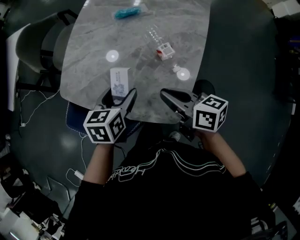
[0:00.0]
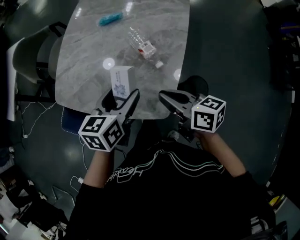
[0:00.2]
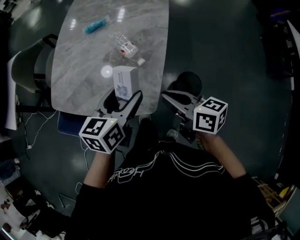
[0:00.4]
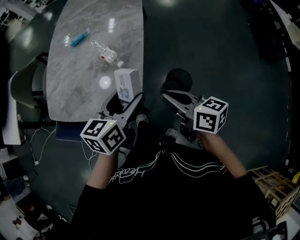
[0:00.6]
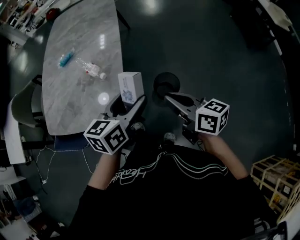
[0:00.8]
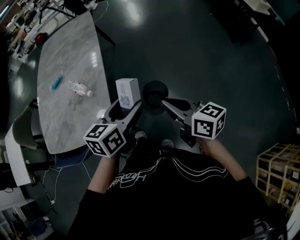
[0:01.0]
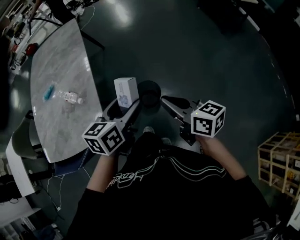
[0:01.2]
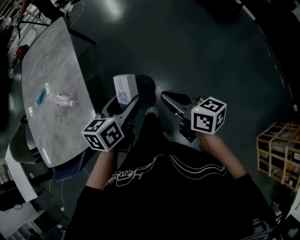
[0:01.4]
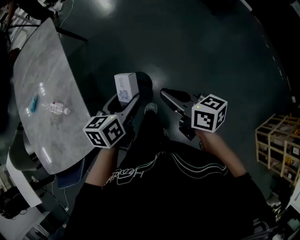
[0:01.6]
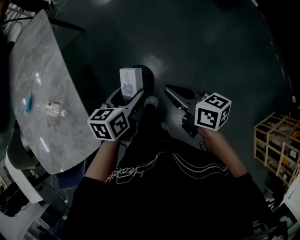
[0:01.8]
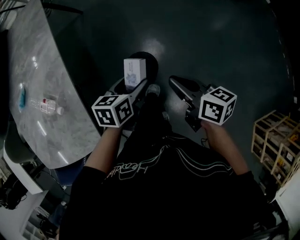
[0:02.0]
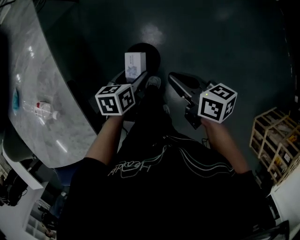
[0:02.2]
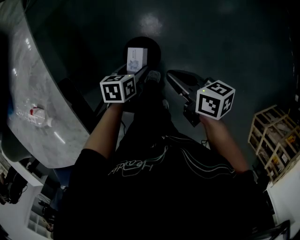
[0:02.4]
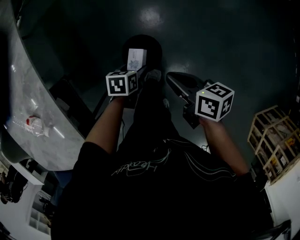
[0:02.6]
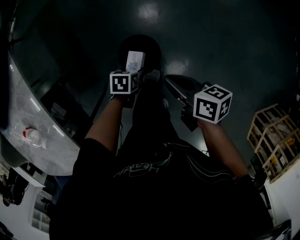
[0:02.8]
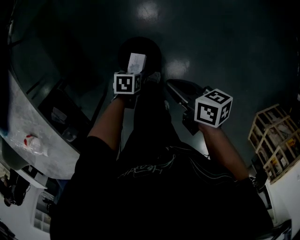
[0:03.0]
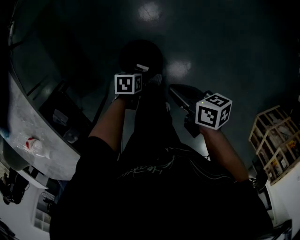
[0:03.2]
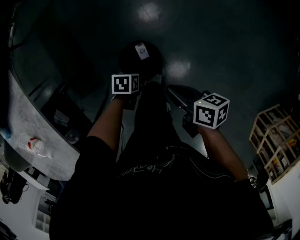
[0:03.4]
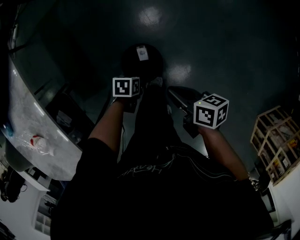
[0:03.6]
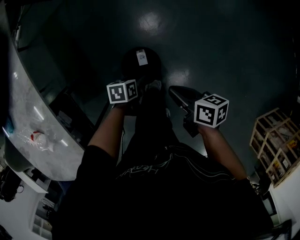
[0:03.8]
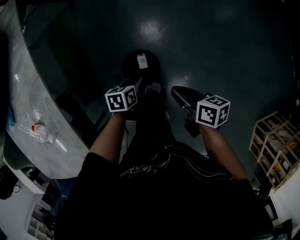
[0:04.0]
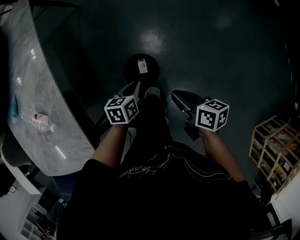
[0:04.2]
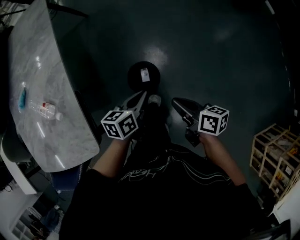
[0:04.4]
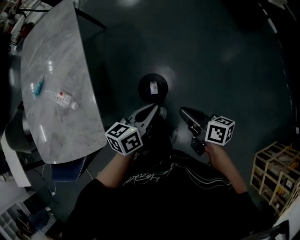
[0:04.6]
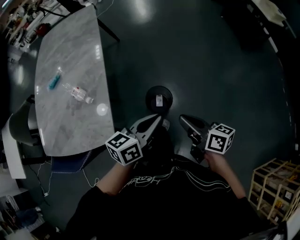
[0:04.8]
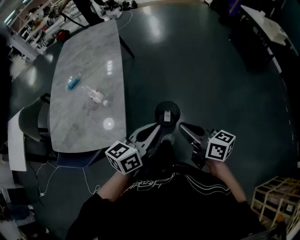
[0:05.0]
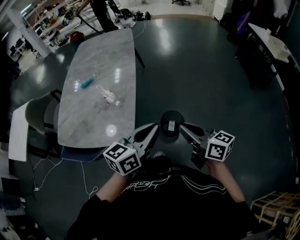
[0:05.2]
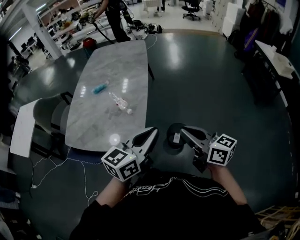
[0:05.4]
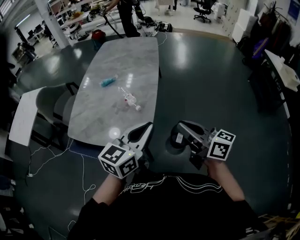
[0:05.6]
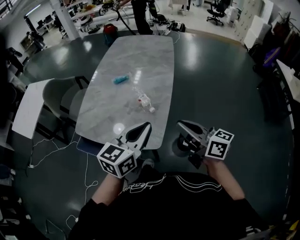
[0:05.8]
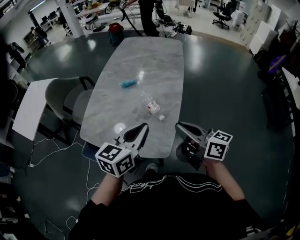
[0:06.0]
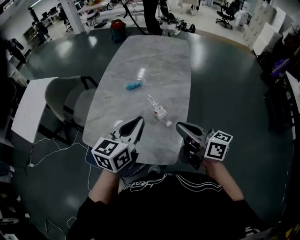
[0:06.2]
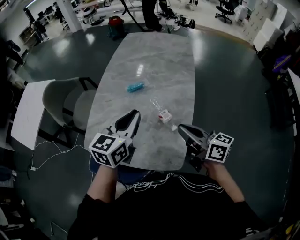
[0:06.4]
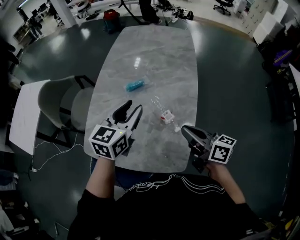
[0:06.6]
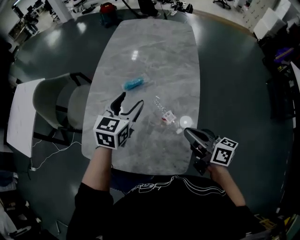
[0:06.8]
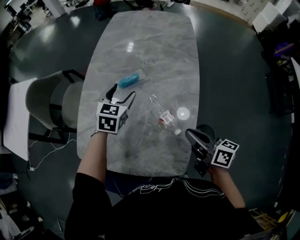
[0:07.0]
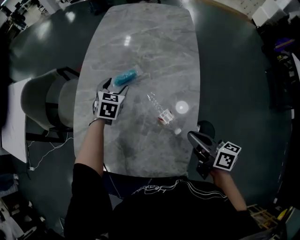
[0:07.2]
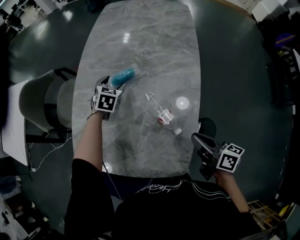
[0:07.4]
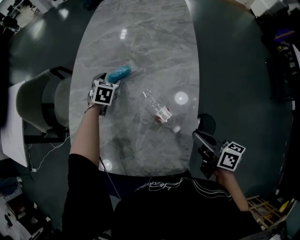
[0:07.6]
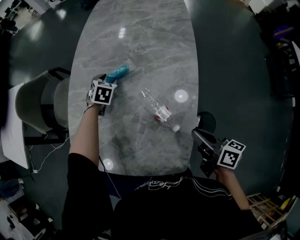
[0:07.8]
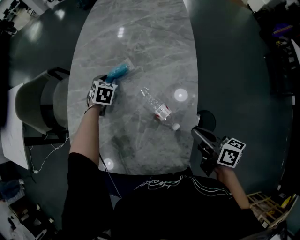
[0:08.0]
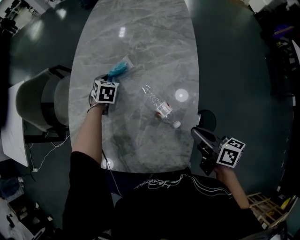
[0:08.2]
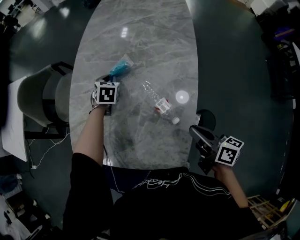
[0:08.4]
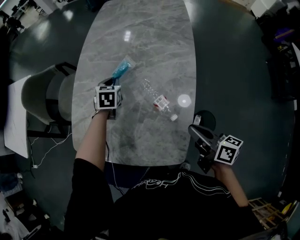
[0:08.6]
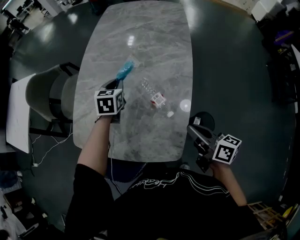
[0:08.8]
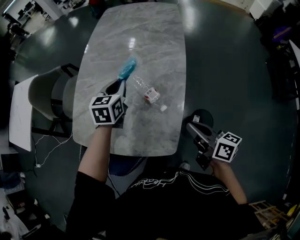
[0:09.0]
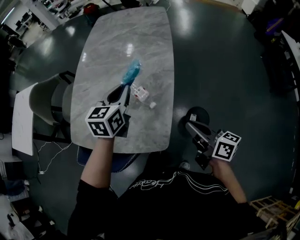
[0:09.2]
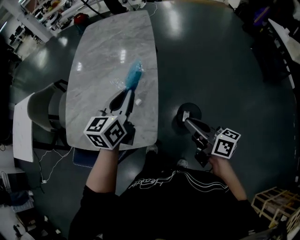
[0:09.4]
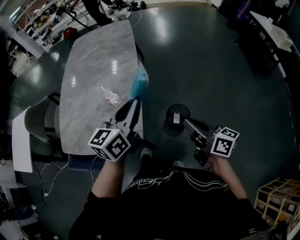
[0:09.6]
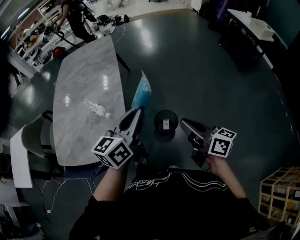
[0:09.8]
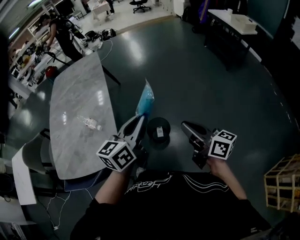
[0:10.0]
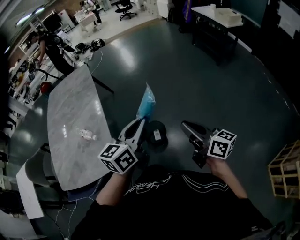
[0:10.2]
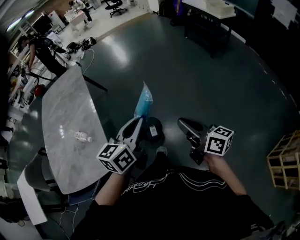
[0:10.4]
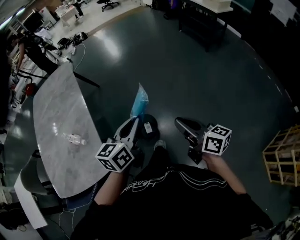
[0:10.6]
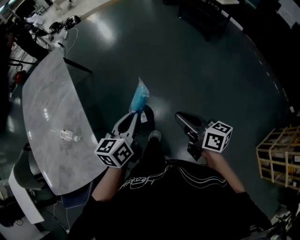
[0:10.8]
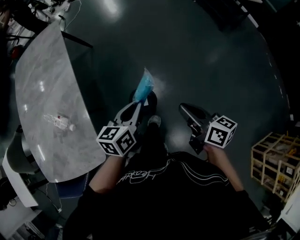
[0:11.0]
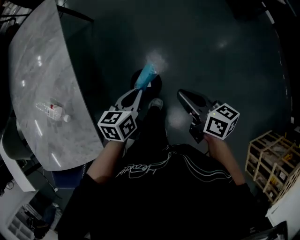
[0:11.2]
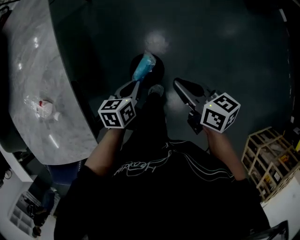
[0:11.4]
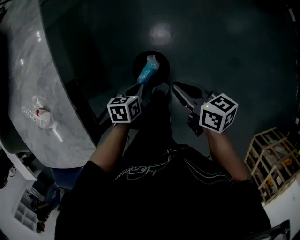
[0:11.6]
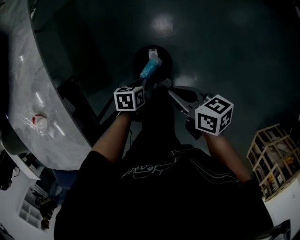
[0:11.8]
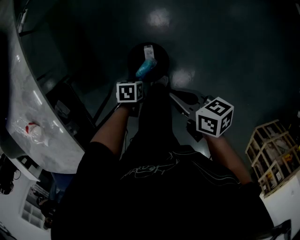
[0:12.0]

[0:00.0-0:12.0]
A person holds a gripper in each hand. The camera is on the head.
0:00.0 to 0:01.6: The two grippers travel together, roughly 50 cm. The left gripper rotates some 50 degrees; the right gripper turns by roughly 50 degrees.
0:01.6 to 0:03.0: The right gripper travels downward by some 30 cm, and rotates some 30 degrees. The left gripper is displaced downward by some 50 cm, and tips its fingers downward by some 40 degrees.
0:03.0 to 0:04.4: The right gripper travels upward by some 15 cm. Meanwhile the left gripper moves upward, some 30 cm, points its fingers some 40 degrees further upward, and closes.
0:04.4 to 0:06.0: The right gripper changes place by approximately 50 cm, and changes its angle by roughly 50 degrees. Meanwhile the left gripper changes place by roughly 50 cm, and swivels some 40 degrees.
0:06.0 to 0:07.6: The left gripper is displaced forward and downward by some 50 cm, angles its fingers downward, by approximately 40 degrees, and opens its fingers. Meanwhile the right gripper goes roughly 20 cm downward and forward, and changes its angle by approximately 30 degrees.
0:07.6 to 0:09.0: The left gripper goes approximately 25 cm backward and upward, swivels approximately 30 degrees, and closes its fingers; the right gripper shifts about 5 cm backward.
0:09.0 to 0:10.4: Both grippers are carried roughly 50 cm. The left gripper rotates approximately 50 degrees; the right gripper swivels approximately 40 degrees.
0:10.4 to 0:12.0: The right gripper goes roughly 40 cm downward, and tips its fingers downward by approximately 30 degrees; the left gripper is displaced downward by roughly 60 cm, and points its fingers some 60 degrees further downward.

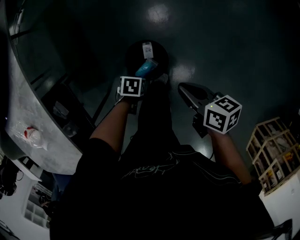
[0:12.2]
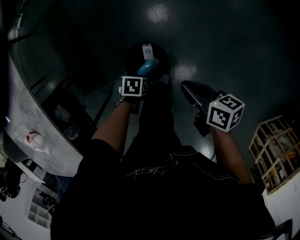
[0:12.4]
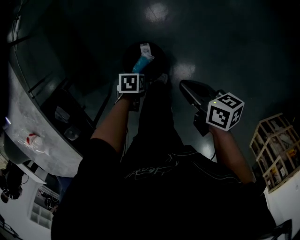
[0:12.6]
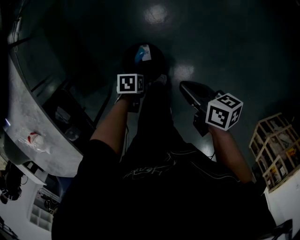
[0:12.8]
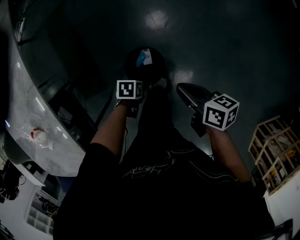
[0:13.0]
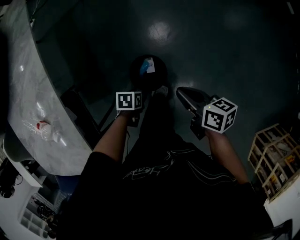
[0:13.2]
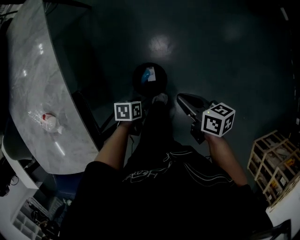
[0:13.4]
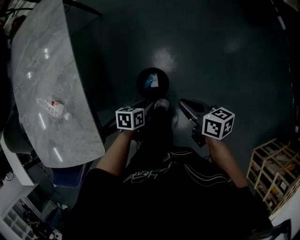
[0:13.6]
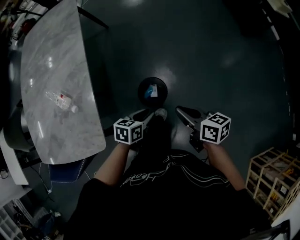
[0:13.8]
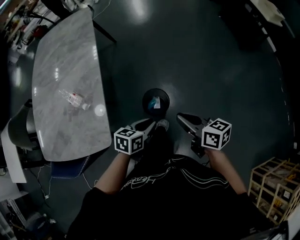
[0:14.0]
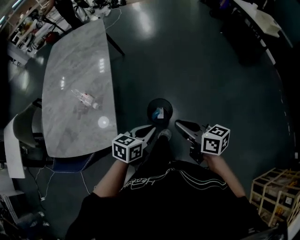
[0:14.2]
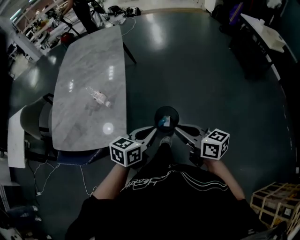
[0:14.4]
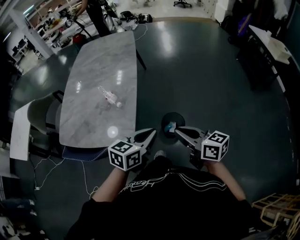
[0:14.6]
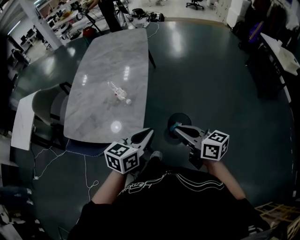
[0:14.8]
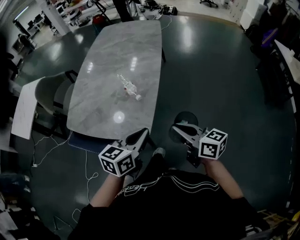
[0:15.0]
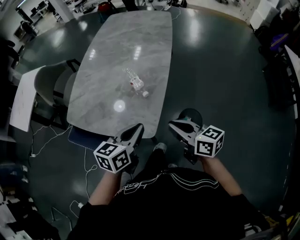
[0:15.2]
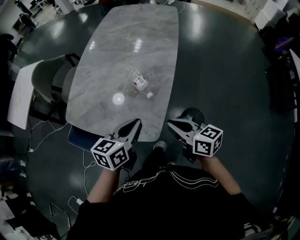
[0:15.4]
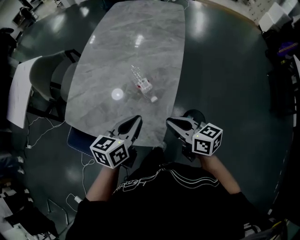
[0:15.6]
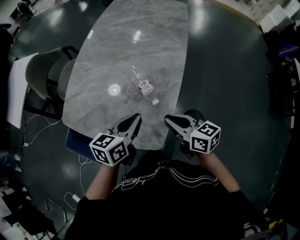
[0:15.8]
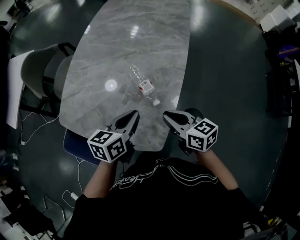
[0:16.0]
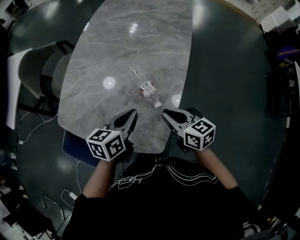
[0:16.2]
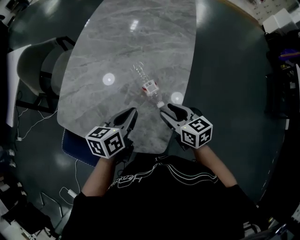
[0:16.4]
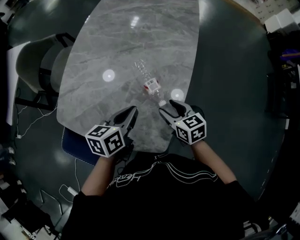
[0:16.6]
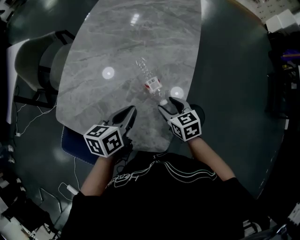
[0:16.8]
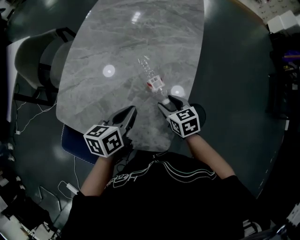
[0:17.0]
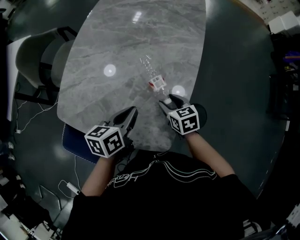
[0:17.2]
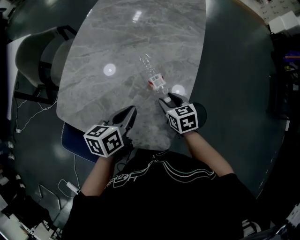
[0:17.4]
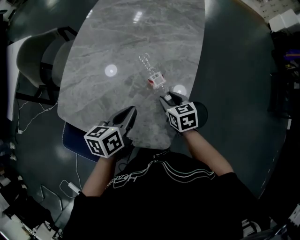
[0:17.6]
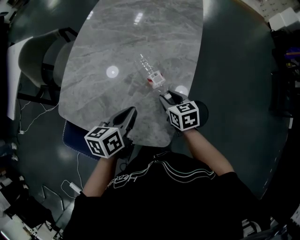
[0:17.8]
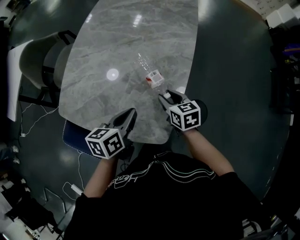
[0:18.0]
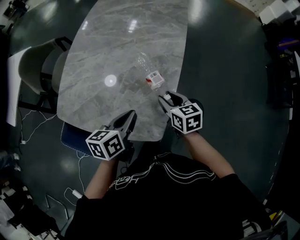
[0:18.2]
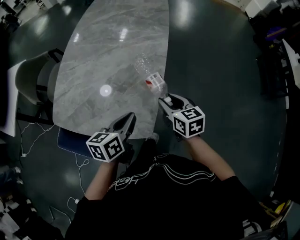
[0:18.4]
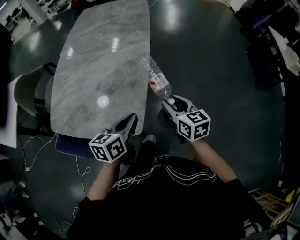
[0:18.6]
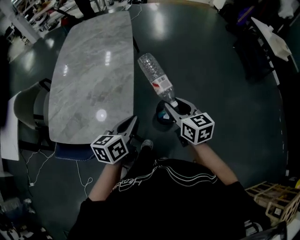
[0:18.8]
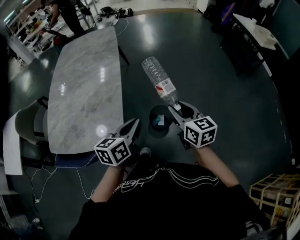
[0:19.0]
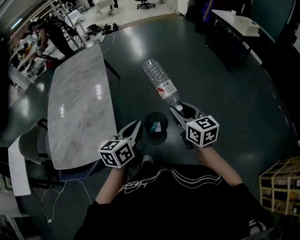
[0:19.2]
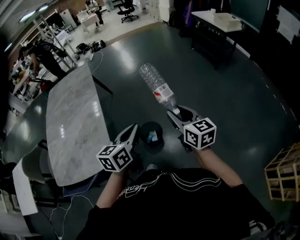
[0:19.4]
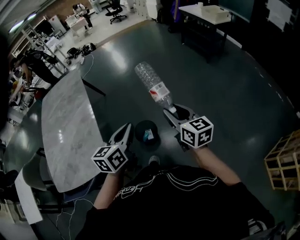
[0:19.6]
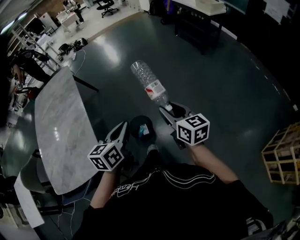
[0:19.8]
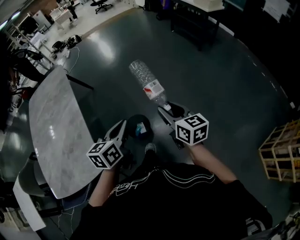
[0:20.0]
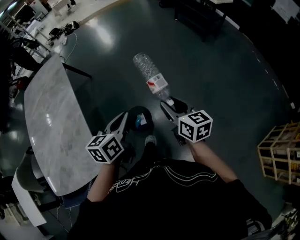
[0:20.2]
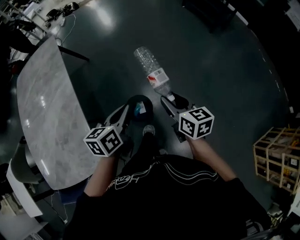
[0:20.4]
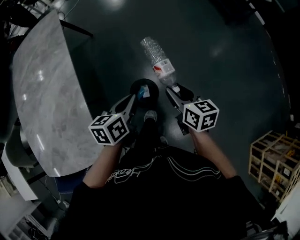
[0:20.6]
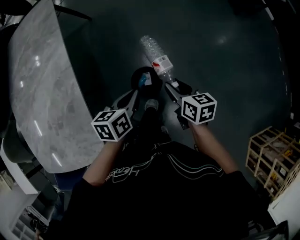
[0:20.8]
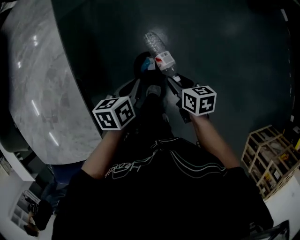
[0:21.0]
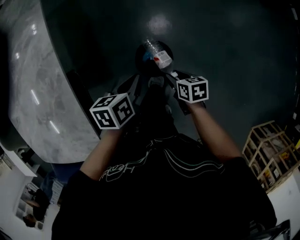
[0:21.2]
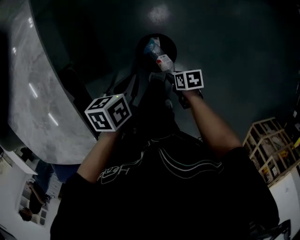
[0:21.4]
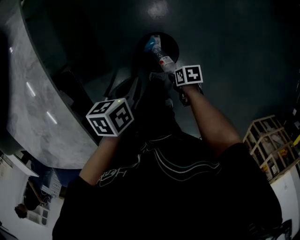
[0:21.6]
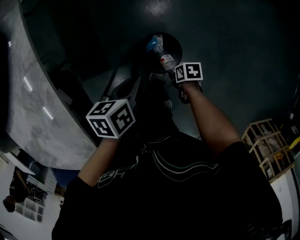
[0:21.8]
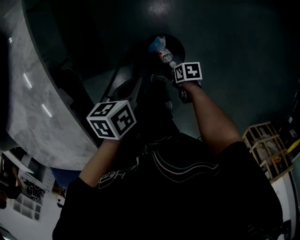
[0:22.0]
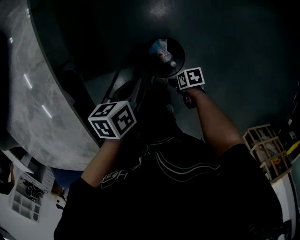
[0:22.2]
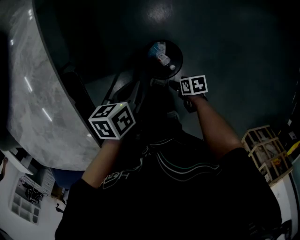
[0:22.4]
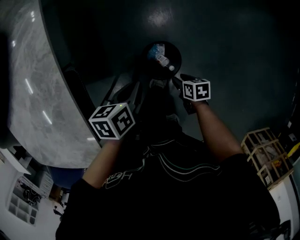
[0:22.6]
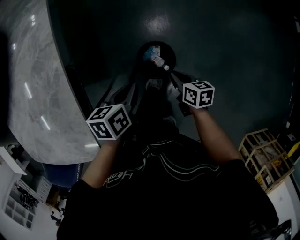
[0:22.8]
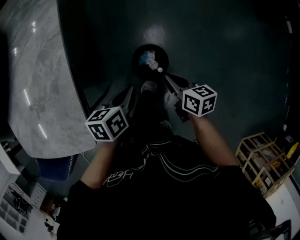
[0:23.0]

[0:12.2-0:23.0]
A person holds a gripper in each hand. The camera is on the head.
0:12.2 to 0:13.8: The right gripper travels upward by approximately 20 cm. The left gripper heads upward, covering about 30 cm, and tilts its fingers about 30 degrees upward.
0:13.8 to 0:15.2: The left gripper shifts by about 40 cm, turns by roughly 40 degrees, and closes up; the right gripper shifts by about 30 cm, and turns by about 40 degrees.
0:15.2 to 0:16.8: The right gripper moves forward and downward, about 25 cm, tips its fingers downward by roughly 30 degrees, and opens; the left gripper travels forward, to the left and downward by about 20 cm.
0:16.8 to 0:18.4: The left gripper moves backward and to the right, some 10 cm; the right gripper is displaced to the right, upward and backward by roughly 10 cm.
0:18.4 to 0:20.0: The right gripper changes place by approximately 40 cm, and turns by about 40 degrees. Meanwhile the left gripper moves about 35 cm, and rotates roughly 40 degrees.
0:20.0 to 0:21.4: Both grippers move downward, some 40 cm. The left gripper tips its fingers downward by some 30 degrees, while the right gripper angles its fingers downward, by some 50 degrees.
0:21.4 to 0:23.0: The right gripper shifts about 20 cm upward, rotates some 40 degrees, and closes up. The left gripper moves roughly 10 cm.
